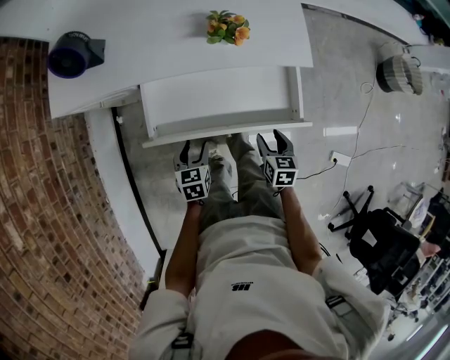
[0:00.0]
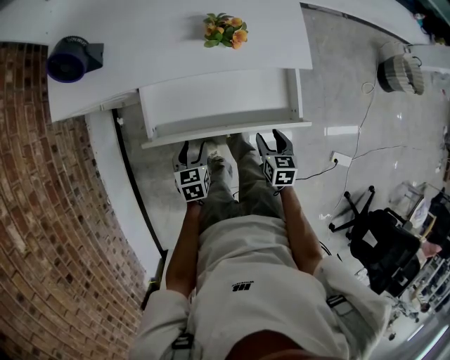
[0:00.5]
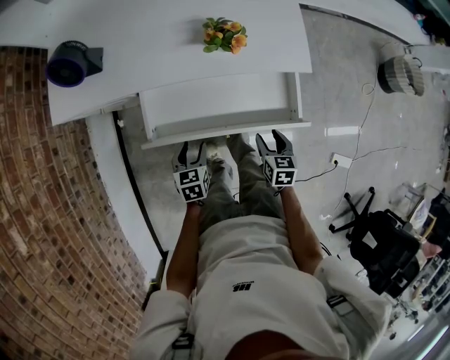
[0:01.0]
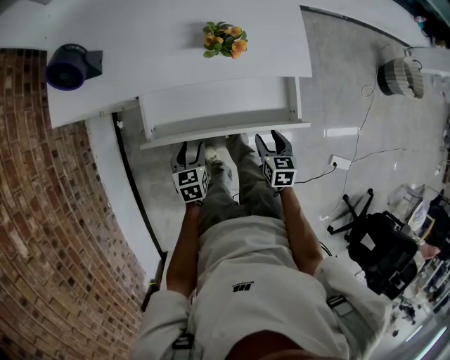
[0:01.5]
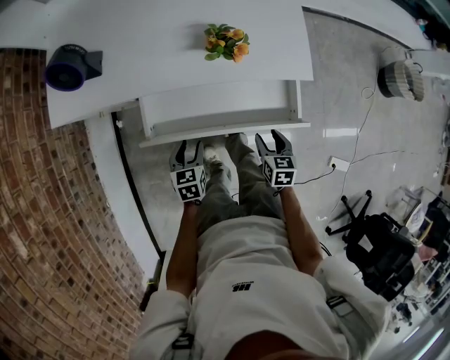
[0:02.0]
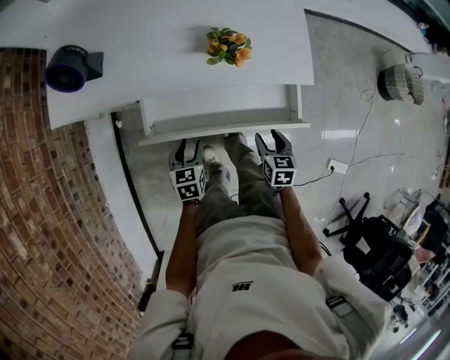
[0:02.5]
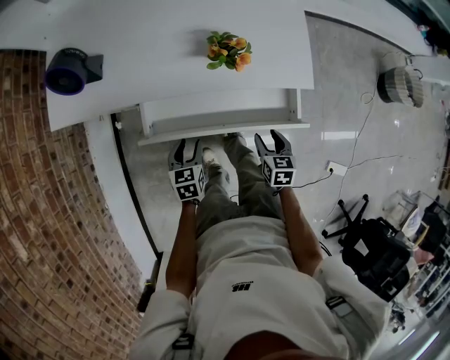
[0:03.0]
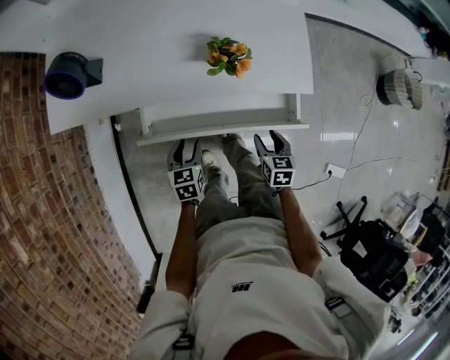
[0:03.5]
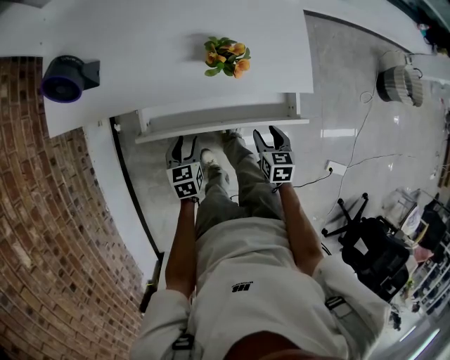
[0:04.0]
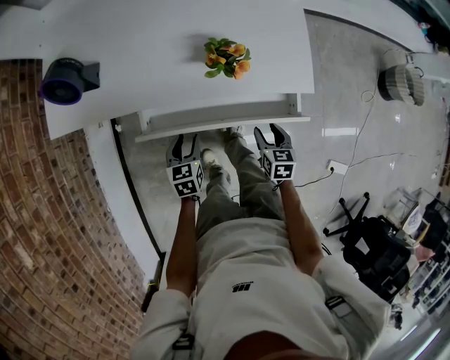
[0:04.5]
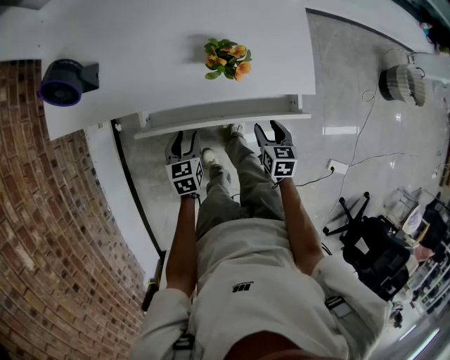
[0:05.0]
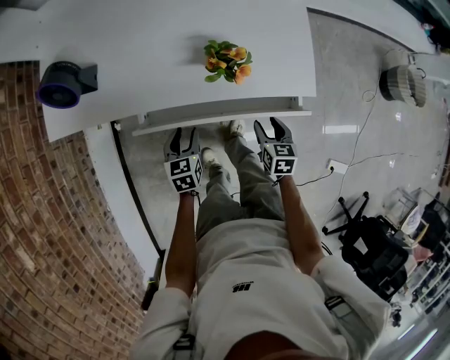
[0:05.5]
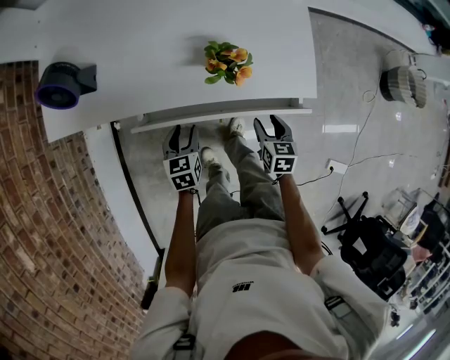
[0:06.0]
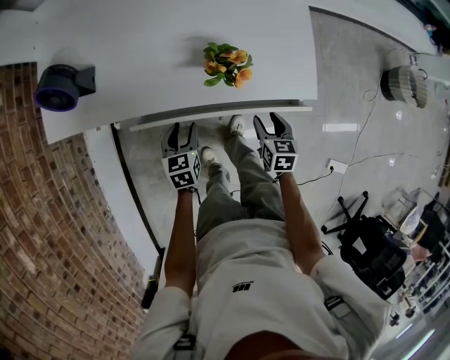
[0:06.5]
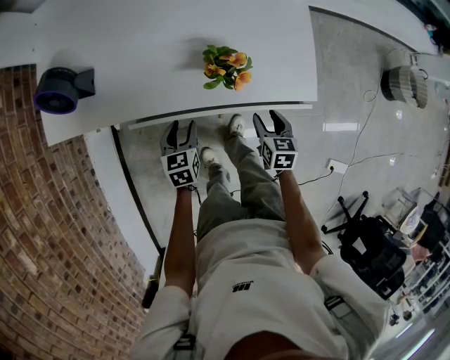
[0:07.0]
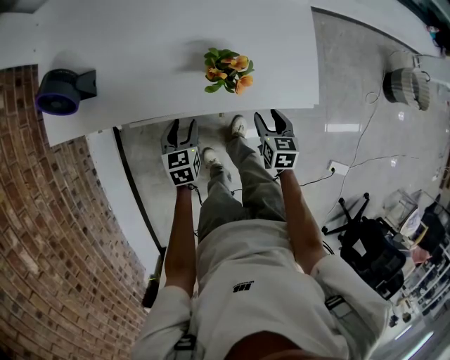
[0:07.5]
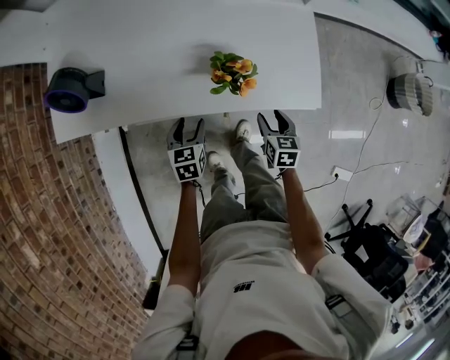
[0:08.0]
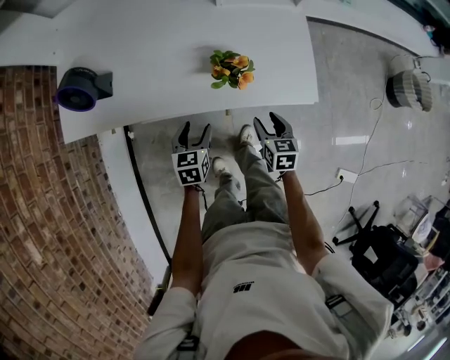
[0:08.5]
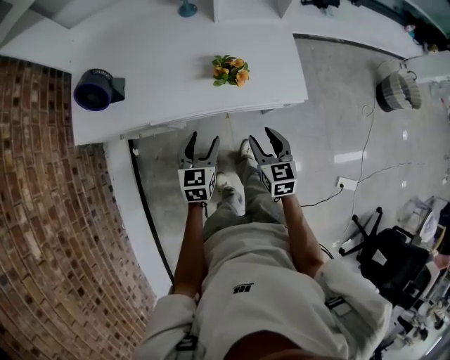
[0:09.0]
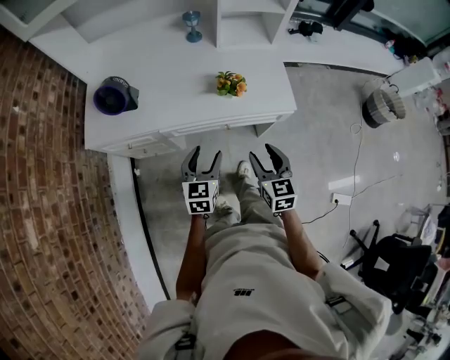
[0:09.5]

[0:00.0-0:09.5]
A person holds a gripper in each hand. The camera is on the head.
0:00.0 to 0:02.0: The grippers both shift forward by about 5 cm.
0:02.0 to 0:04.0: The grippers both shift forward by about 5 cm.
0:04.0 to 0:05.5: The grippers move only a little.
0:05.5 to 0:07.5: Both grippers move forward, some 5 cm.
0:07.5 to 0:09.5: Both grippers move upward and backward, roughly 25 cm. The left gripper changes its angle by roughly 30 degrees. Meanwhile the right gripper turns by roughly 20 degrees.

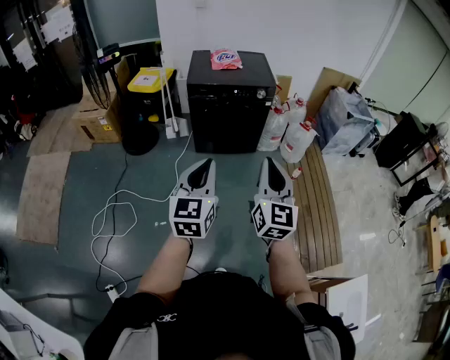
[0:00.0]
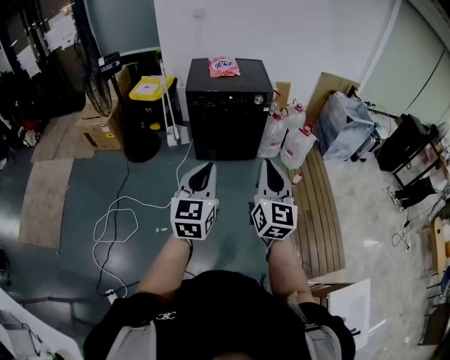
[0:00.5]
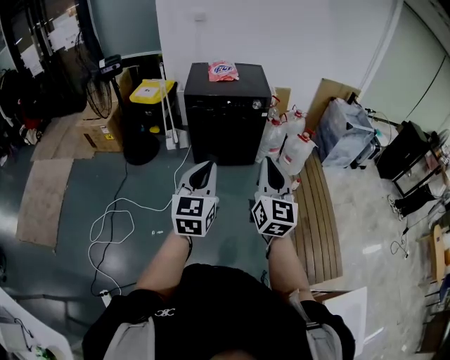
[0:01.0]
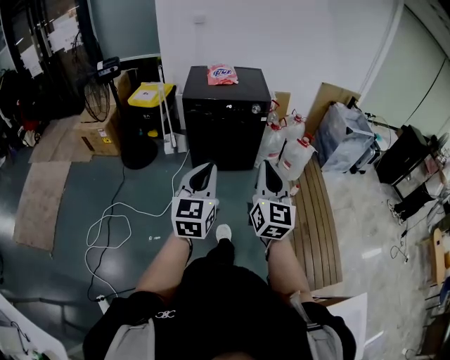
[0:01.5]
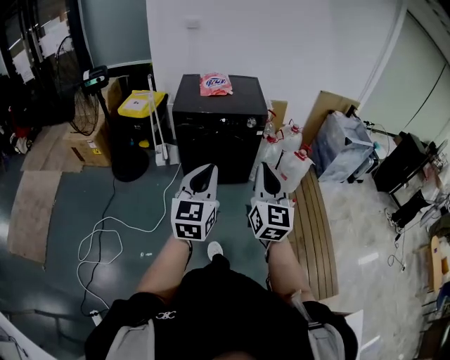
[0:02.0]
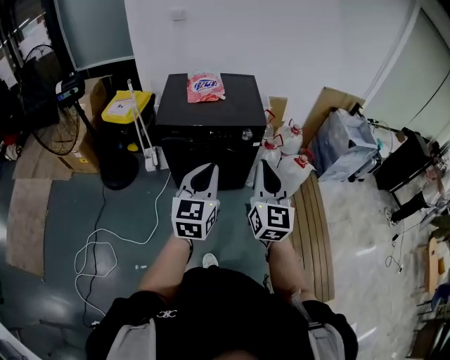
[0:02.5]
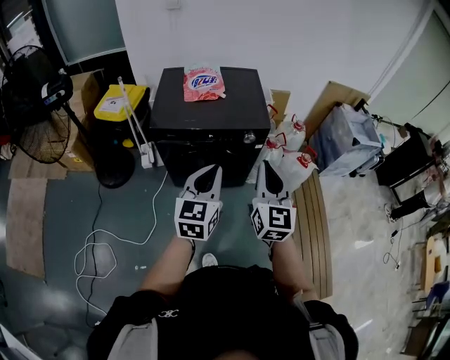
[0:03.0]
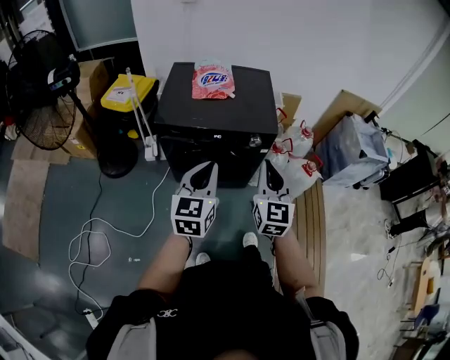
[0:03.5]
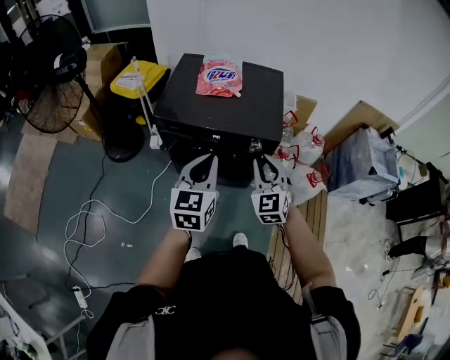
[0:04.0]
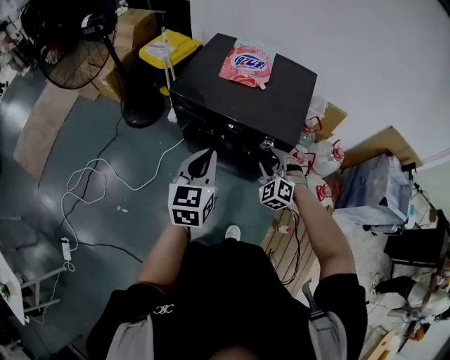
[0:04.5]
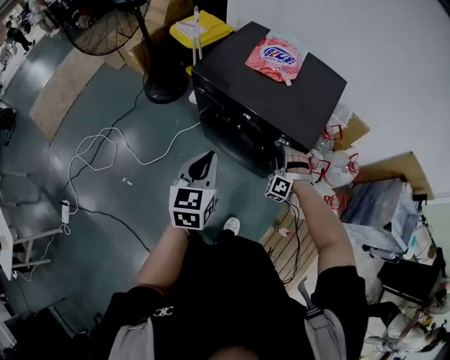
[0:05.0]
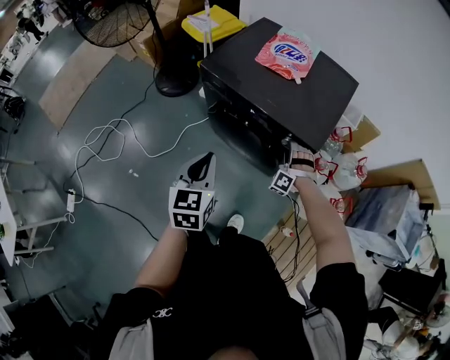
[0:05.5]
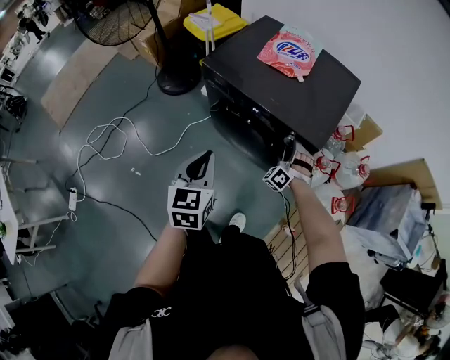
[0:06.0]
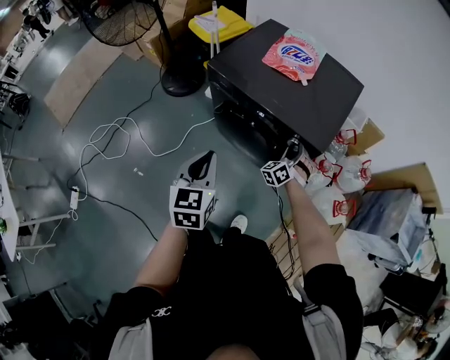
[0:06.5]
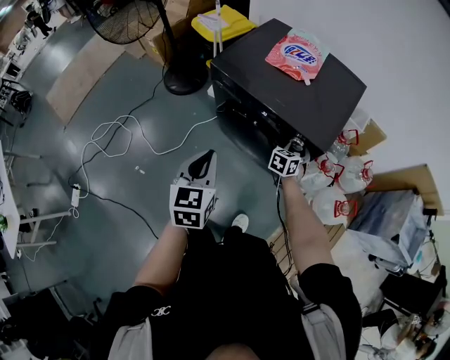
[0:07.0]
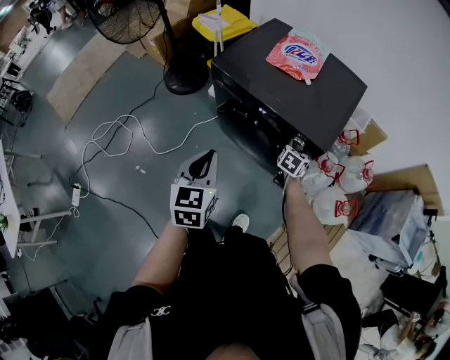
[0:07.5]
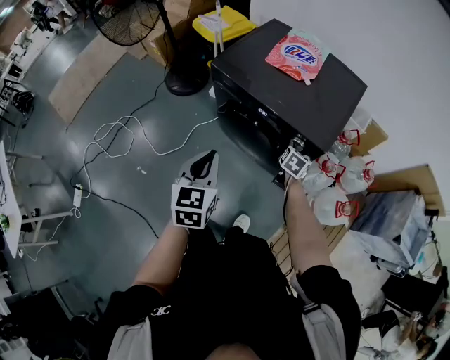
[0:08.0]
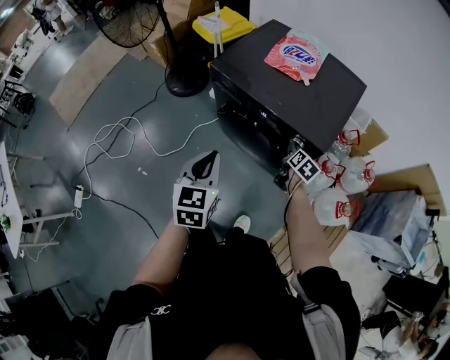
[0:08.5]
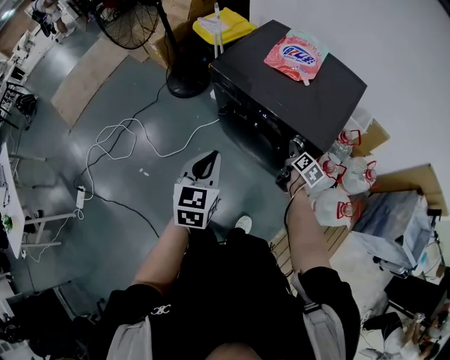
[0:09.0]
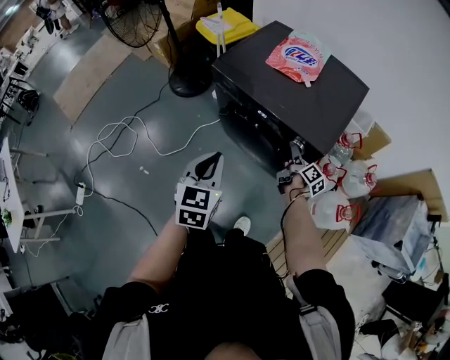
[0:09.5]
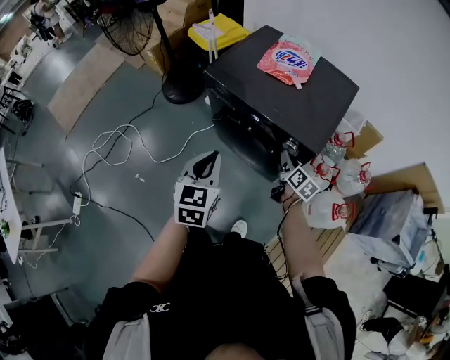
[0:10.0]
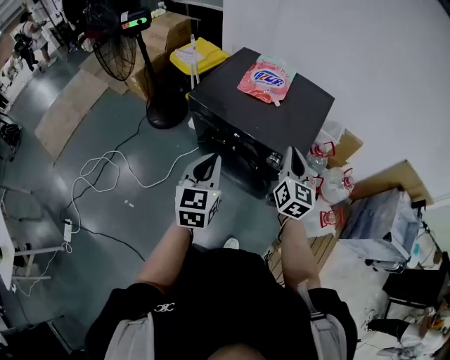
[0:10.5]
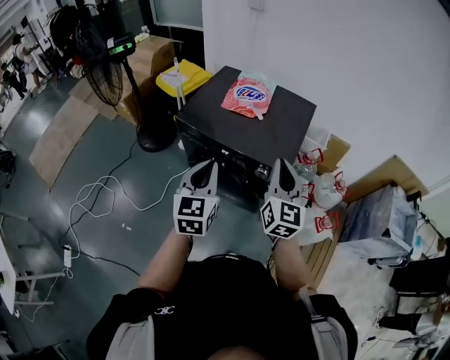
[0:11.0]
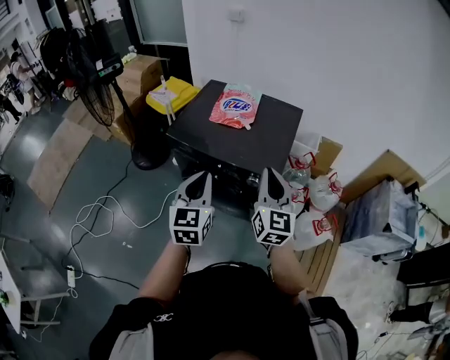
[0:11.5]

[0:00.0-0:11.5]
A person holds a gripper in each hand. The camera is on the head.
0:00.0 to 0:02.0: The right gripper travels forward by about 15 cm, while the left gripper moves forward and to the right, about 15 cm.
0:02.0 to 0:04.0: The two grippers go approximately 40 cm forward. The right gripper turns by some 40 degrees.
0:04.0 to 0:06.0: The right gripper moves downward and forward, some 30 cm, rotates around the line of its fingers by roughly 50 degrees, counterclockwise from behind, and opens up, while the left gripper heads downward, covering roughly 10 cm, and turns by about 30 degrees.
0:06.0 to 0:07.5: The right gripper rotates around the line of its fingers by some 80 degrees, clockwise from behind.
0:07.5 to 0:09.5: The right gripper twists approximately 50 degrees clockwise, seen from behind.
0:09.5 to 0:11.5: The left gripper goes some 15 cm upward, to the right and forward, while the right gripper shifts approximately 35 cm upward, twists about 60 degrees counterclockwise, seen from behind, and closes.

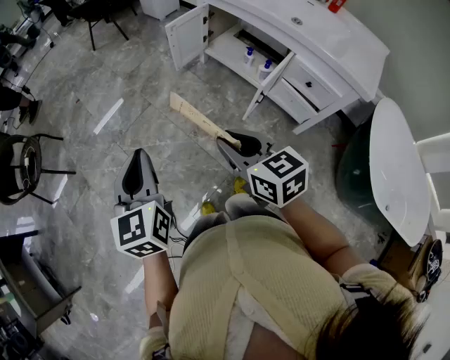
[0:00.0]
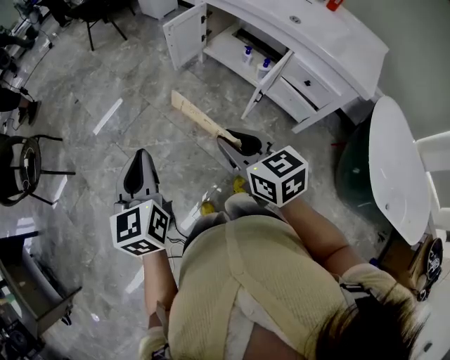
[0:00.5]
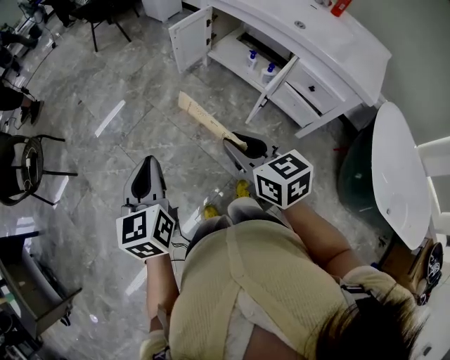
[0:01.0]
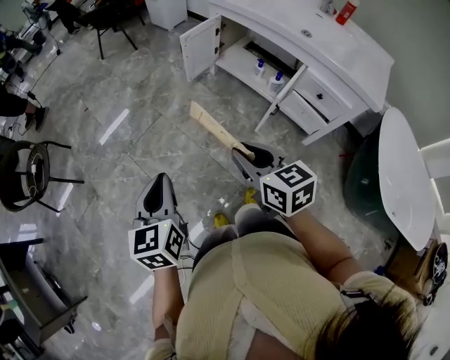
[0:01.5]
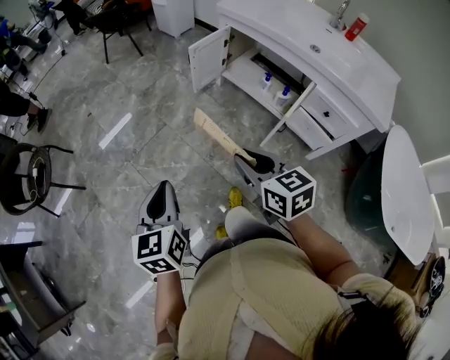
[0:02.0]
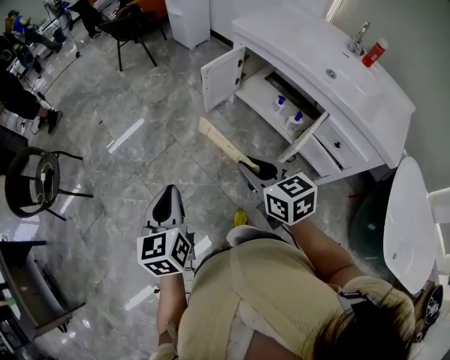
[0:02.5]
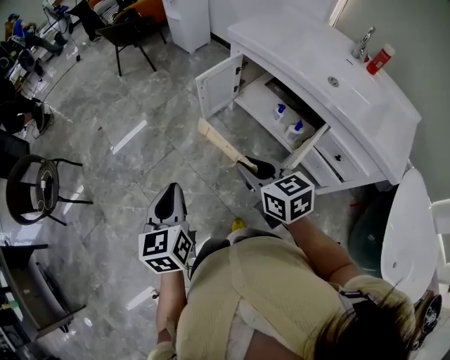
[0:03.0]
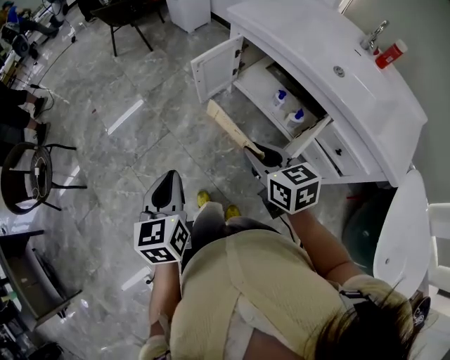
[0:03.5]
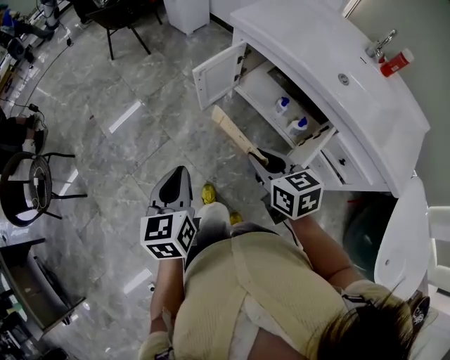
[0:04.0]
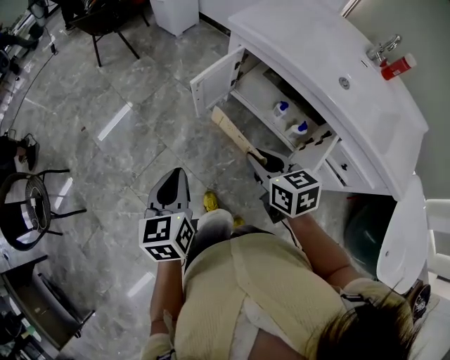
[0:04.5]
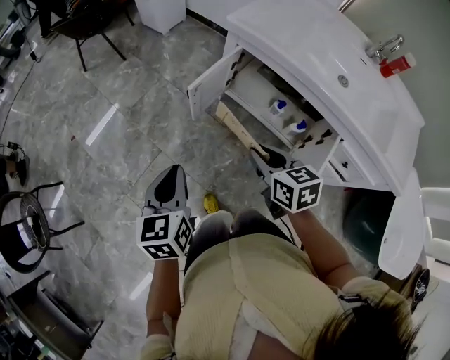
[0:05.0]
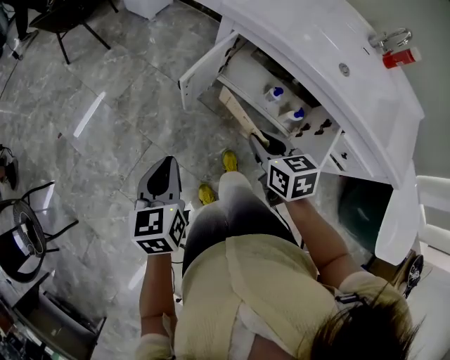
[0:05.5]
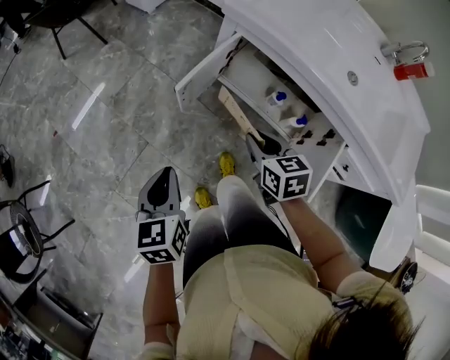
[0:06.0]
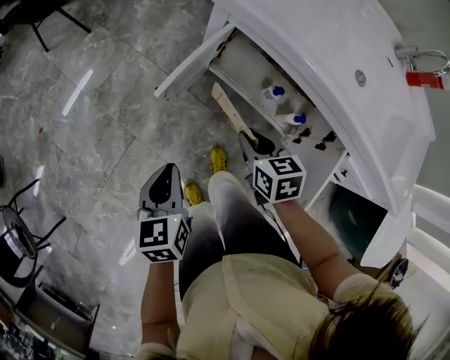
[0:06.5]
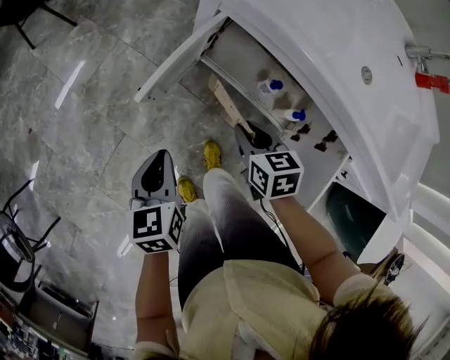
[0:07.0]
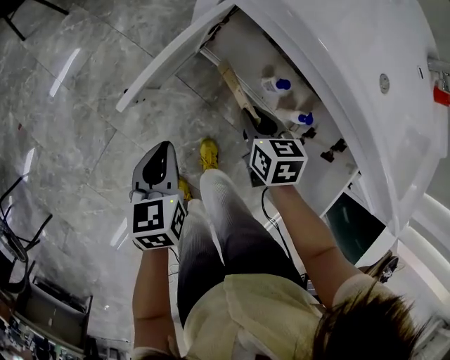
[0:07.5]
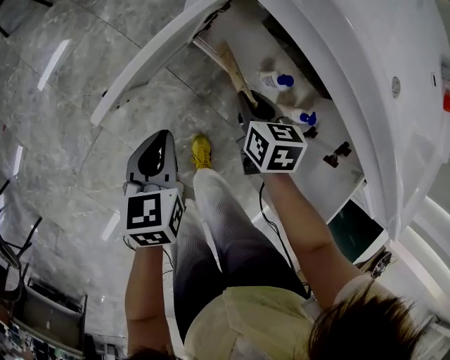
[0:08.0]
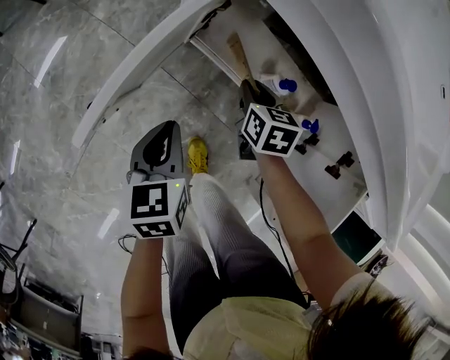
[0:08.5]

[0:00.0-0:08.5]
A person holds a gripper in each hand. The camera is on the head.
0:00.0 to 0:02.0: The left gripper moves downward, roughly 5 cm. The right gripper moves forward, about 10 cm.
0:02.0 to 0:04.0: Both grippers travel together forward and to the right, about 30 cm.
0:04.0 to 0:06.5: Both grippers travel together forward and downward, about 30 cm. The right gripper changes its angle by roughly 20 degrees.
0:06.5 to 0:08.5: The right gripper is displaced downward and forward by roughly 30 cm, while the left gripper goes about 25 cm downward, forward and to the right.
